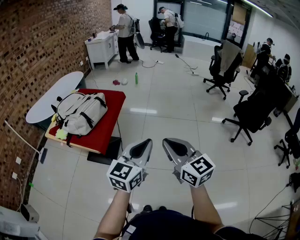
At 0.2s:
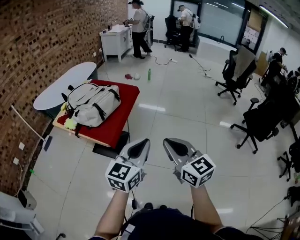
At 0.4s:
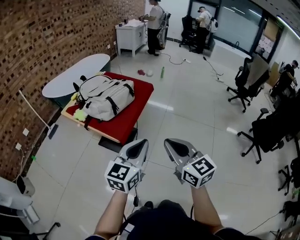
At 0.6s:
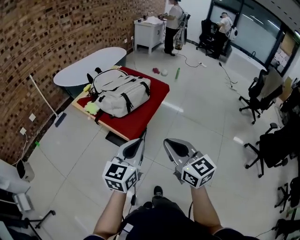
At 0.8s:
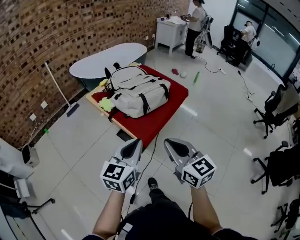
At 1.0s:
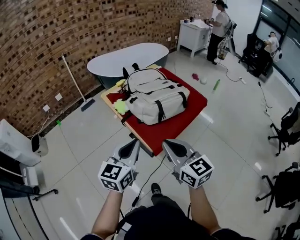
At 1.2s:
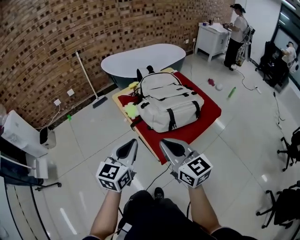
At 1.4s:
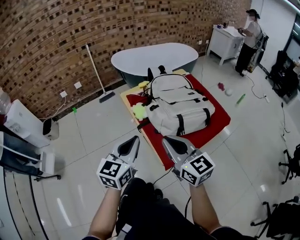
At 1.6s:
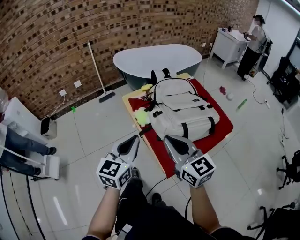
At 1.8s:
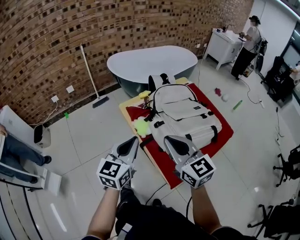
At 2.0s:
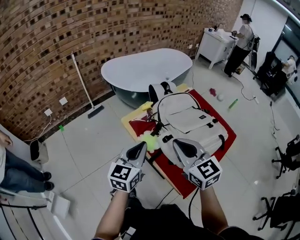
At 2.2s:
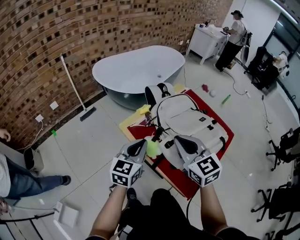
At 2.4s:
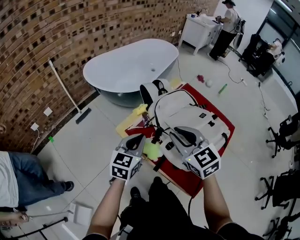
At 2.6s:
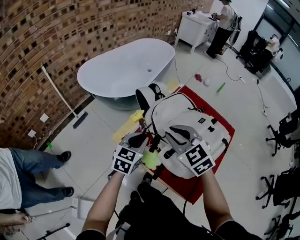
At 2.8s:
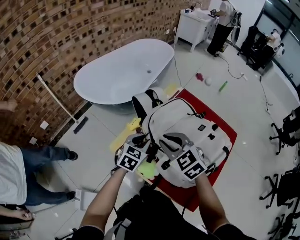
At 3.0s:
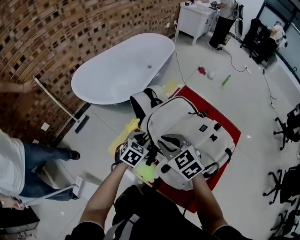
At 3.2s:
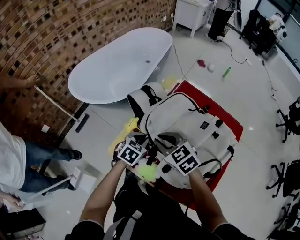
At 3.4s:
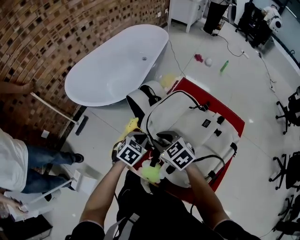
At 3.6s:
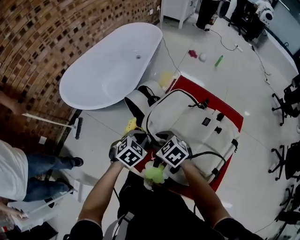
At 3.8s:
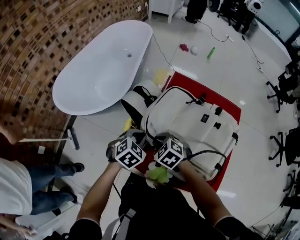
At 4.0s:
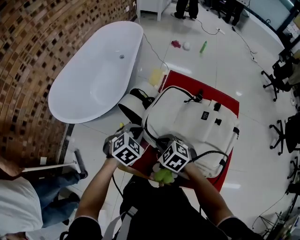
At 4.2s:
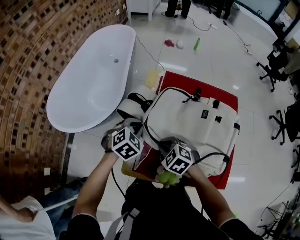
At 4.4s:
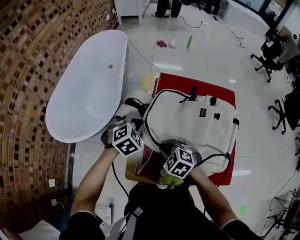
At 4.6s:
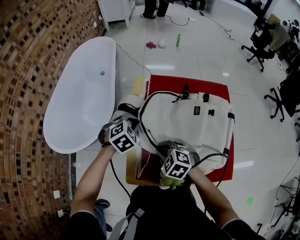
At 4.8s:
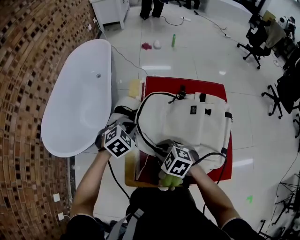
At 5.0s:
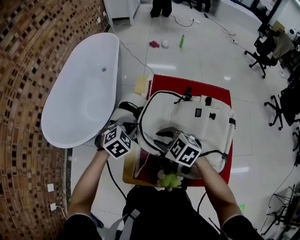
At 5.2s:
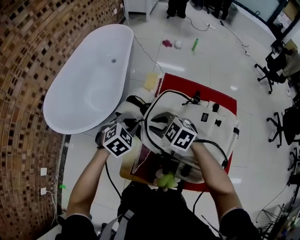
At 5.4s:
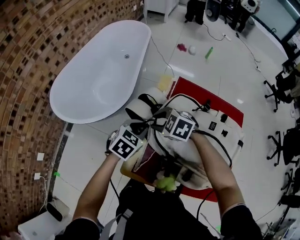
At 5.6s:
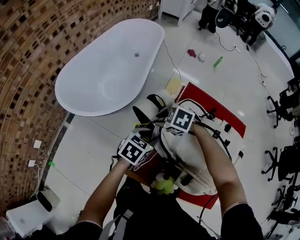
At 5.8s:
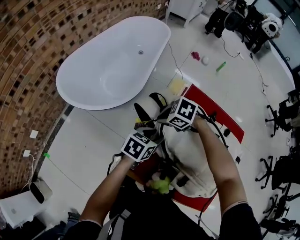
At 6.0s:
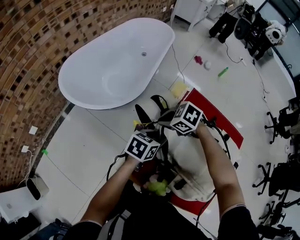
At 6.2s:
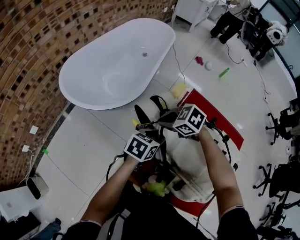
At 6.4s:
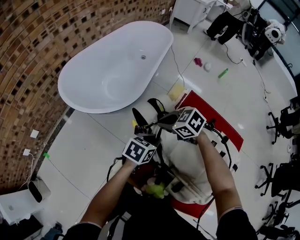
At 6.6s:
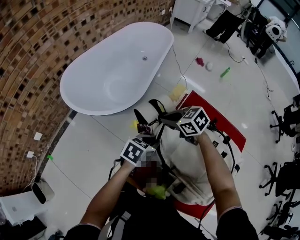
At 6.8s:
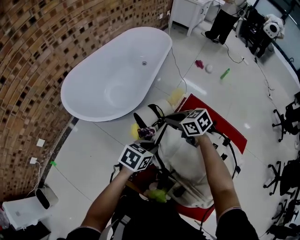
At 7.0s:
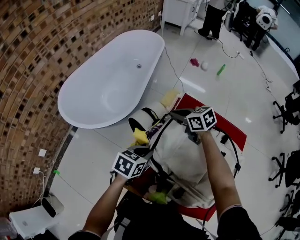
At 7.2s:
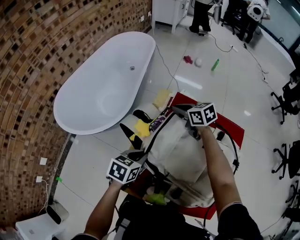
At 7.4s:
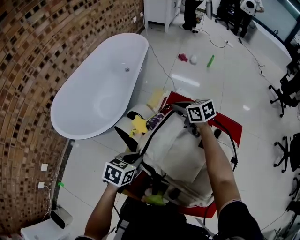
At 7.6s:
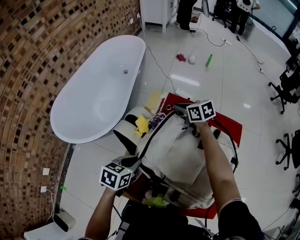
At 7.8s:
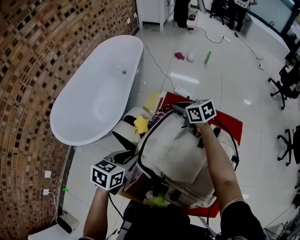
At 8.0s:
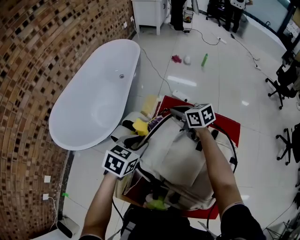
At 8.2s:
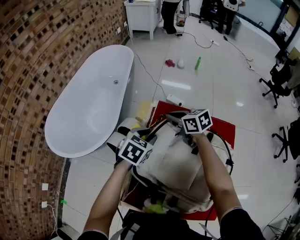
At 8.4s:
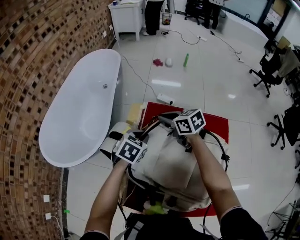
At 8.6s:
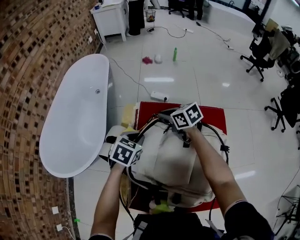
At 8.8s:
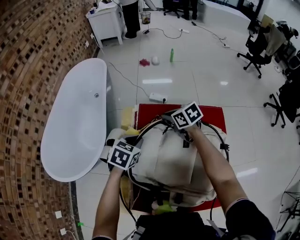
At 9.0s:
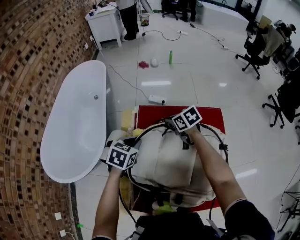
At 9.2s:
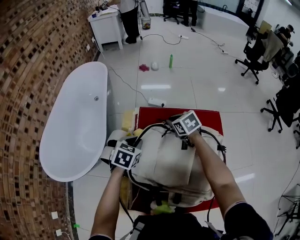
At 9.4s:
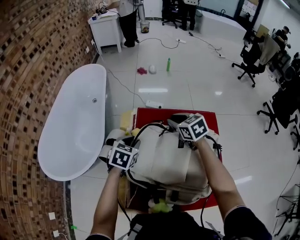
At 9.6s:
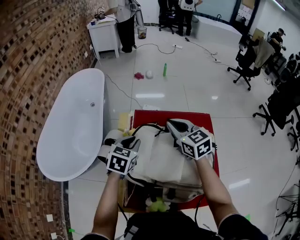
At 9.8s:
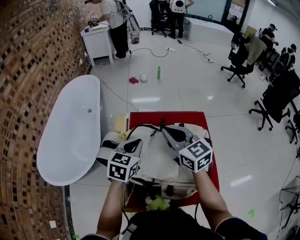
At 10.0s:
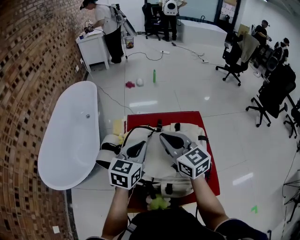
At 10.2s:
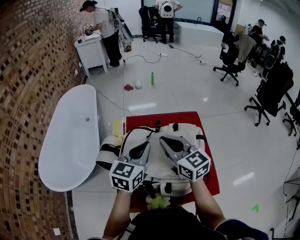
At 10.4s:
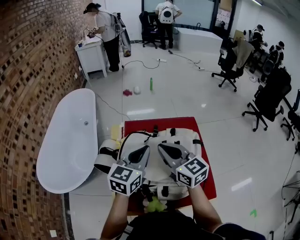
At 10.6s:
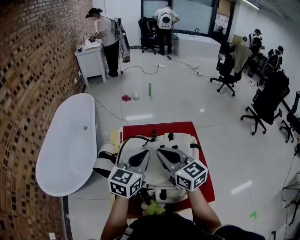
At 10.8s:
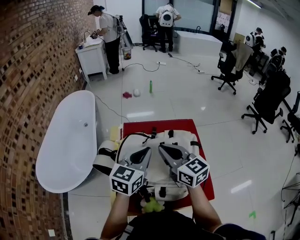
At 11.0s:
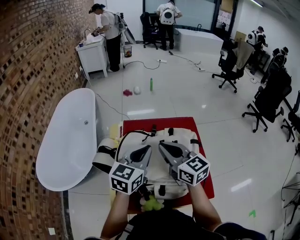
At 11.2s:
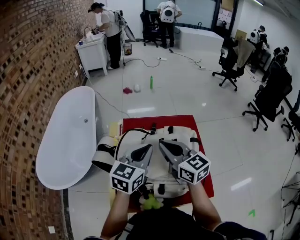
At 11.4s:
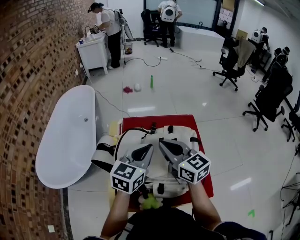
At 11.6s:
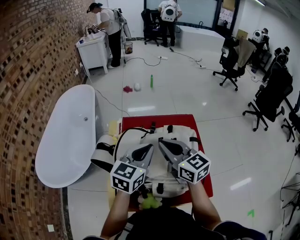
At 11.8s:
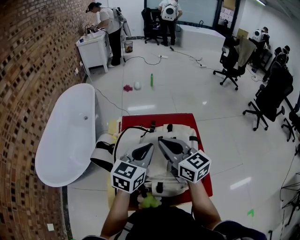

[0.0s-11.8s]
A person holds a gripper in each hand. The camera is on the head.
0.0s to 1.4s: The two grippers travel together, some 50 cm. The right gripper rotates roughly 50 degrees. Meanwhile the left gripper turns by approximately 60 degrees.
1.4s to 3.0s: The right gripper moves some 40 cm, and points its fingers some 30 degrees further downward. Meanwhile the left gripper shifts by some 50 cm, tilts its fingers some 40 degrees downward, and opens.
3.0s to 4.4s: The right gripper is displaced downward by about 10 cm, swivels about 30 degrees, and opens, then closes again, while the left gripper shifts some 10 cm forward, rotates around the line of its fingers by approximately 50 degrees, clockwise from behind, and closes up.
4.4s to 6.0s: The left gripper rolls counterclockwise, seen from behind, by roughly 60 degrees, and opens its fingers, while the right gripper changes place by roughly 15 cm, changes its angle by some 40 degrees, and opens, then closes once more.
6.0s to 7.4s: The left gripper closes. The right gripper ends up roughly 25 cm from where it was, and rotates some 50 degrees.
7.4s to 8.8s: The left gripper heads forward and to the right, covering some 15 cm, rotates roughly 30 degrees, and opens, then closes again; the right gripper shifts about 10 cm to the right.
8.8s to 10.4s: The left gripper goes roughly 25 cm upward, backward and to the right, and tips its fingers upward by roughly 40 degrees, while the right gripper travels backward and upward by approximately 30 cm, and points its fingers some 30 degrees further upward.
10.4s to 11.8s: The grippers stay close to where they were, moving slightly.

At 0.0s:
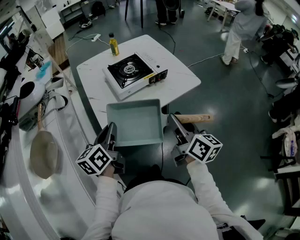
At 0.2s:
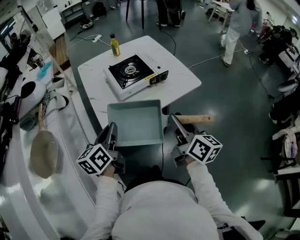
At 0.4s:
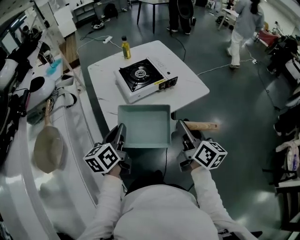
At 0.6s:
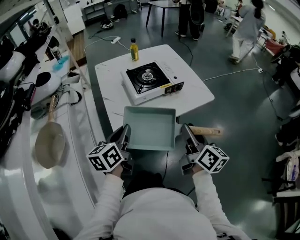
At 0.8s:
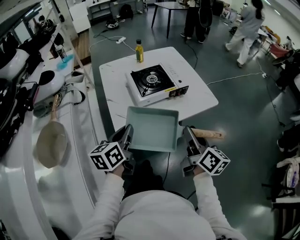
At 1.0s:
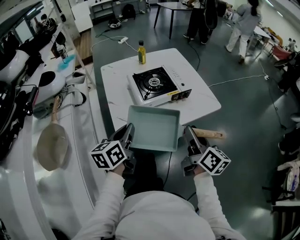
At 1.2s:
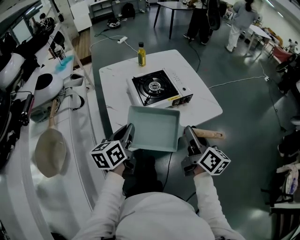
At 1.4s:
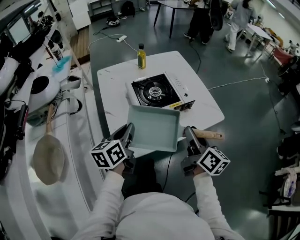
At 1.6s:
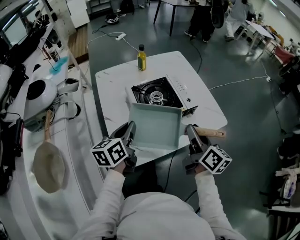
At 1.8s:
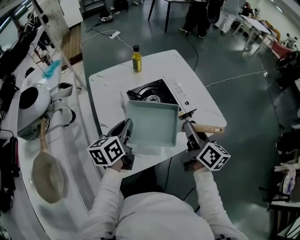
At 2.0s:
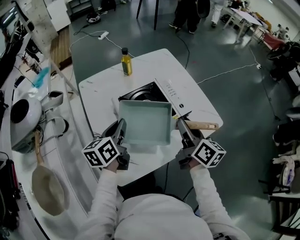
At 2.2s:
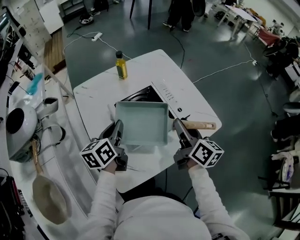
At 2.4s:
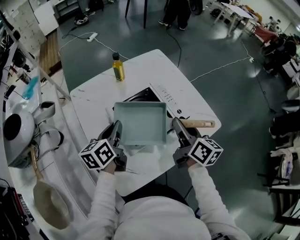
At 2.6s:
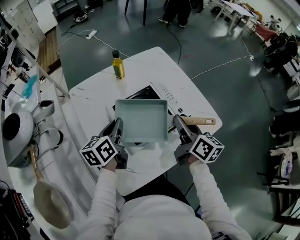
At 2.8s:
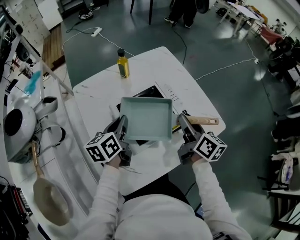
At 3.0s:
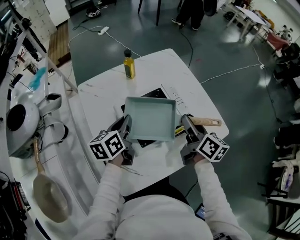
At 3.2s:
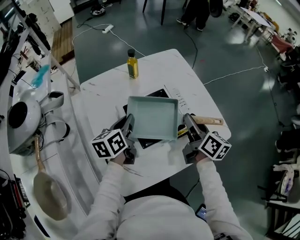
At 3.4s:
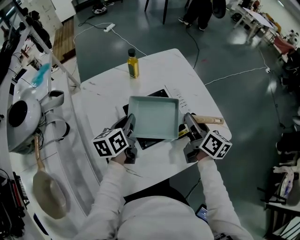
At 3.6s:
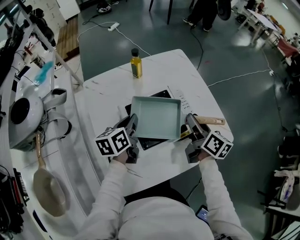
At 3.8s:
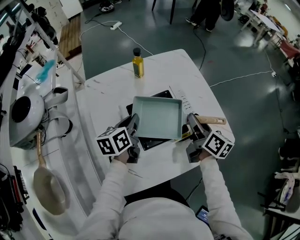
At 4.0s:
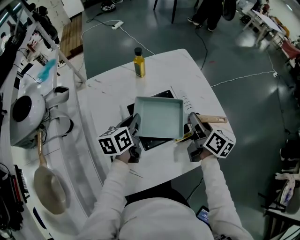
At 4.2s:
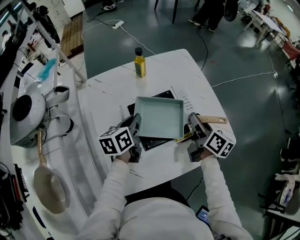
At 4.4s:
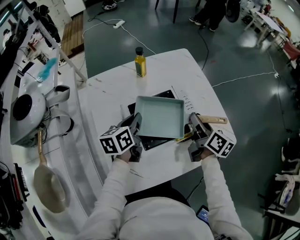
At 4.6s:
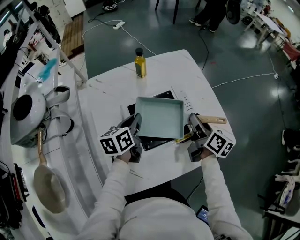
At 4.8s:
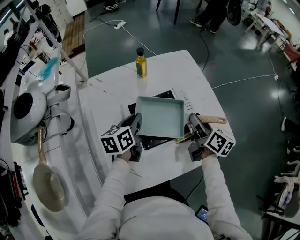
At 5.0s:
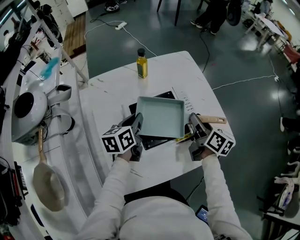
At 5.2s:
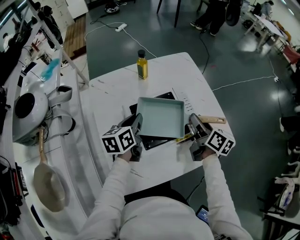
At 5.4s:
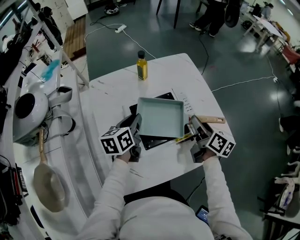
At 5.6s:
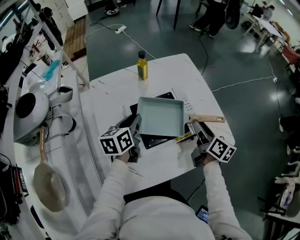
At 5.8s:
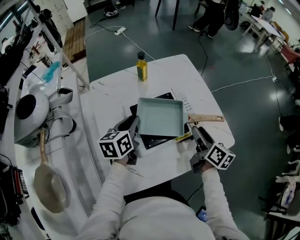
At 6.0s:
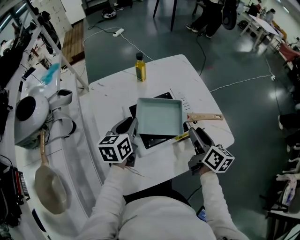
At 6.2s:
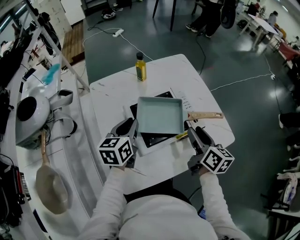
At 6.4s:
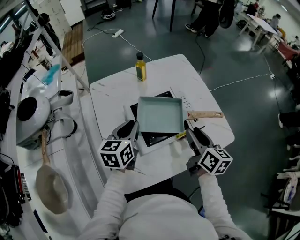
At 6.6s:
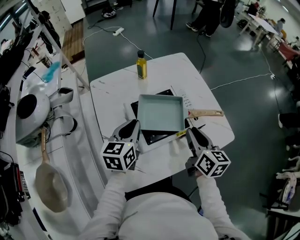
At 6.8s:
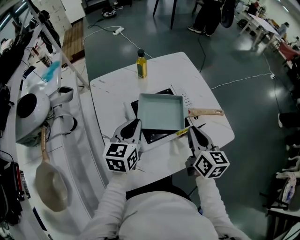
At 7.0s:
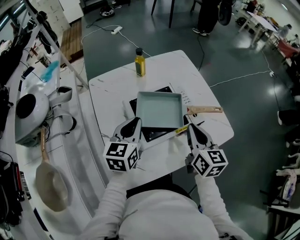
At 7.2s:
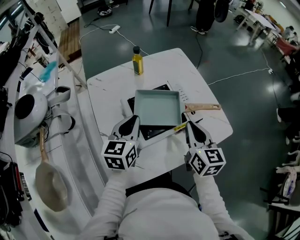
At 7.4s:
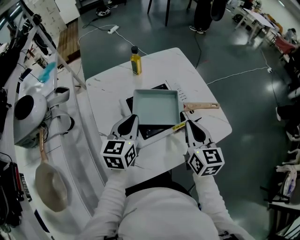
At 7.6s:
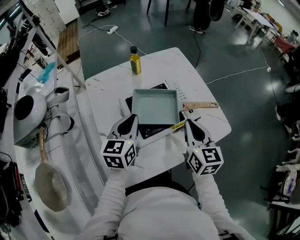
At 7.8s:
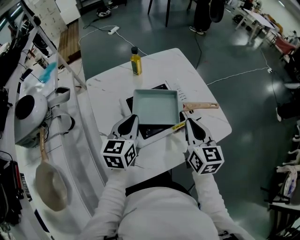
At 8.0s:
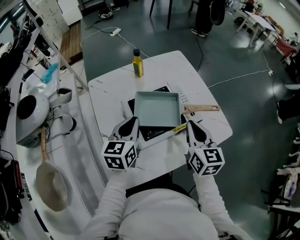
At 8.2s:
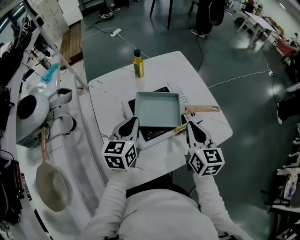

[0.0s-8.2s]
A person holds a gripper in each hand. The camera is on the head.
0.0s to 1.6s: Both grippers move forward, roughly 20 cm.
1.6s to 3.2s: The two grippers go about 20 cm forward.
3.2s to 5.0s: The grippers make only small movements.
5.0s to 6.6s: The right gripper heads backward, covering roughly 10 cm; the left gripper heads backward, covering about 5 cm, and changes its angle by some 20 degrees.
6.6s to 8.2s: The right gripper closes its fingers.

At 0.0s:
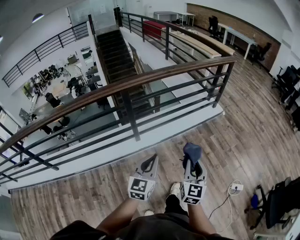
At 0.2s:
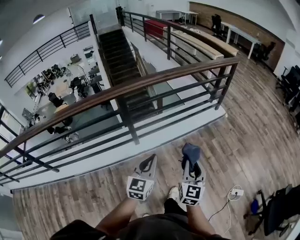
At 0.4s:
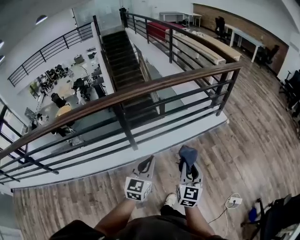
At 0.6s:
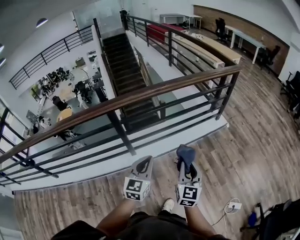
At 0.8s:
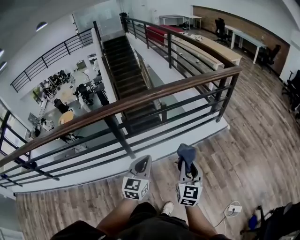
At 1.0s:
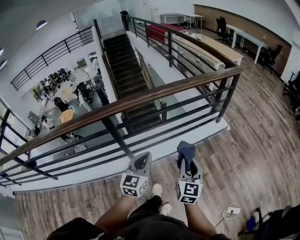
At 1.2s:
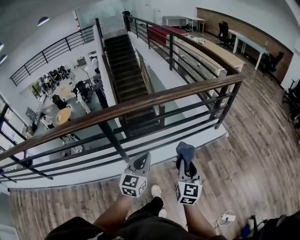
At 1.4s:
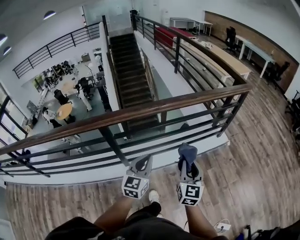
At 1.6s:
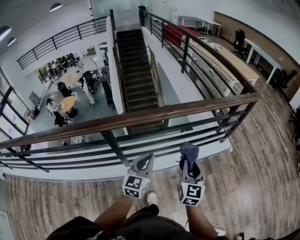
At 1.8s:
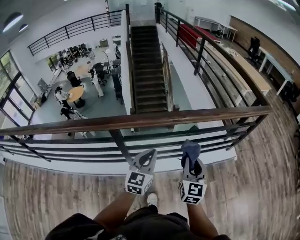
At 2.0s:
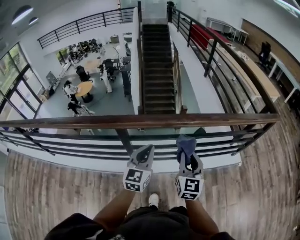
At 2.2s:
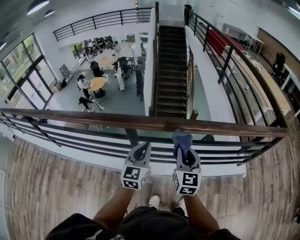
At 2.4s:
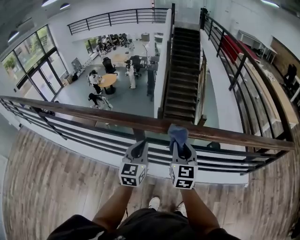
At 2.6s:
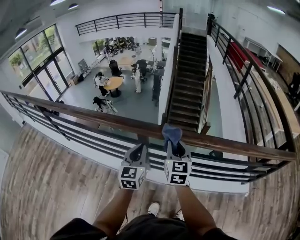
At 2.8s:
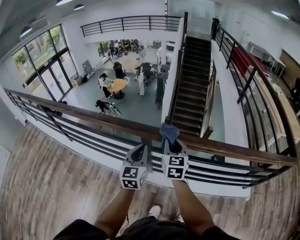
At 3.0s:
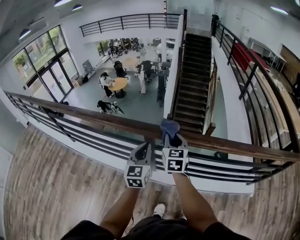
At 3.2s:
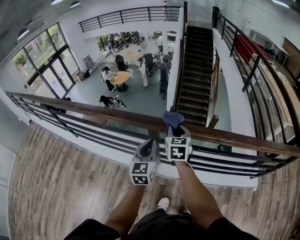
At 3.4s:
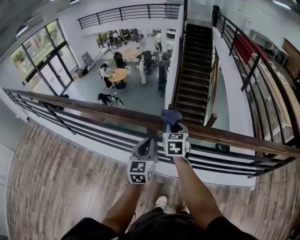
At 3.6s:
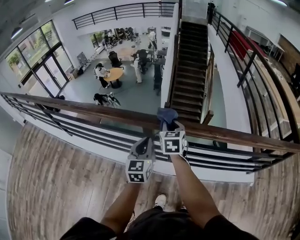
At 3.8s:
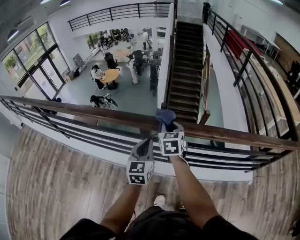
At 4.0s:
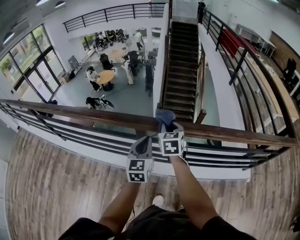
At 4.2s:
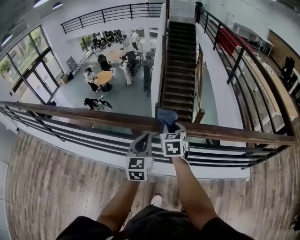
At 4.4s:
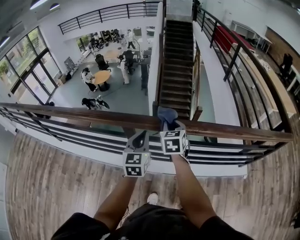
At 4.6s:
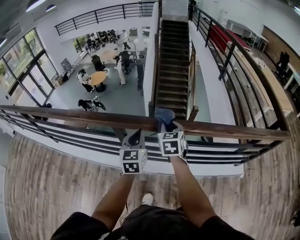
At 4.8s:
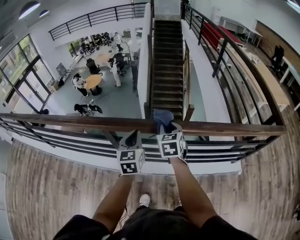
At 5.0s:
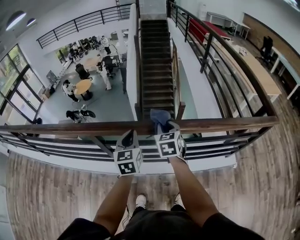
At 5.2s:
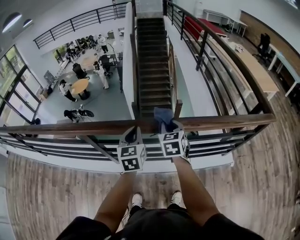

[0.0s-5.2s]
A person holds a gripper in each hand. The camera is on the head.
0.0s to 1.8s: The two grippers travel together, forward, some 50 cm.
1.8s to 3.4s: The right gripper moves some 40 cm, and swivels roughly 30 degrees. The left gripper ends up roughly 25 cm from where it was, and rotates approximately 30 degrees.
3.4s to 5.2s: The two grippers go about 40 cm to the right.
